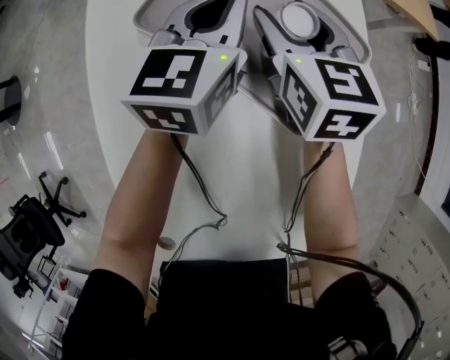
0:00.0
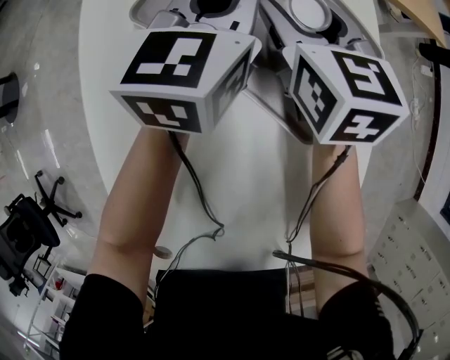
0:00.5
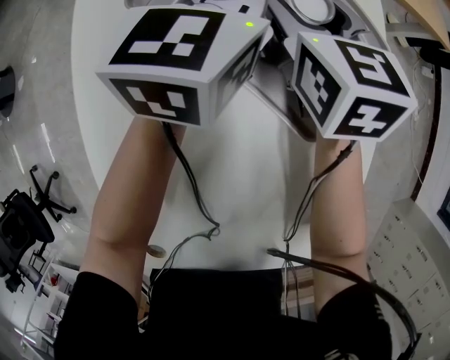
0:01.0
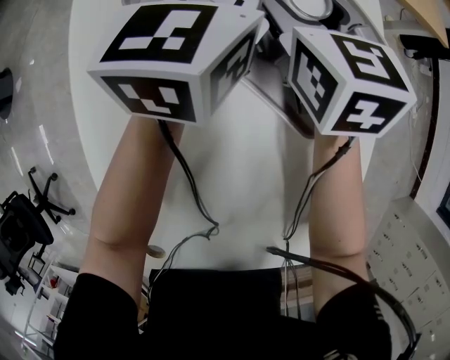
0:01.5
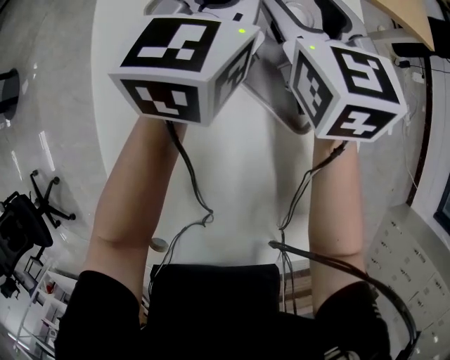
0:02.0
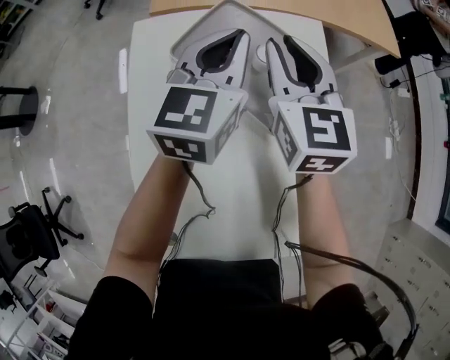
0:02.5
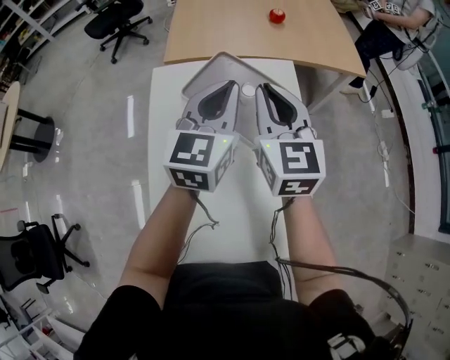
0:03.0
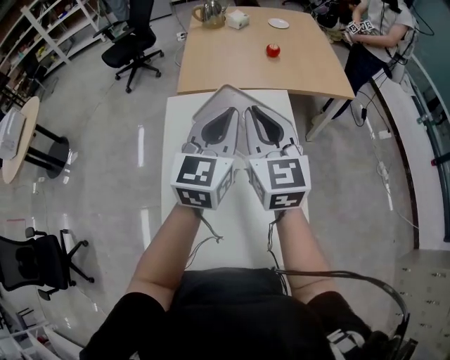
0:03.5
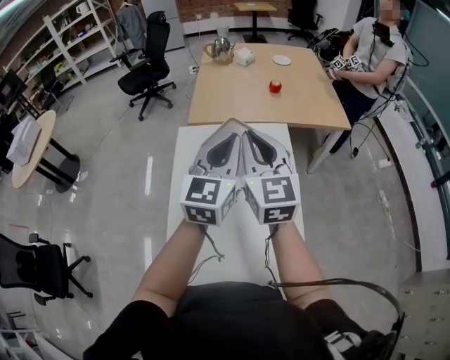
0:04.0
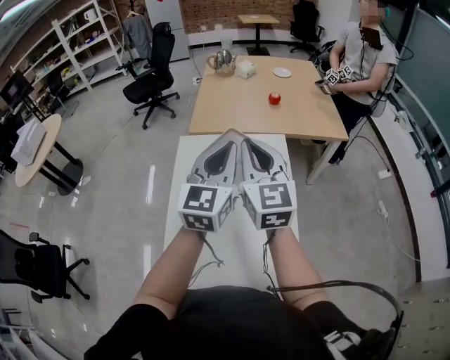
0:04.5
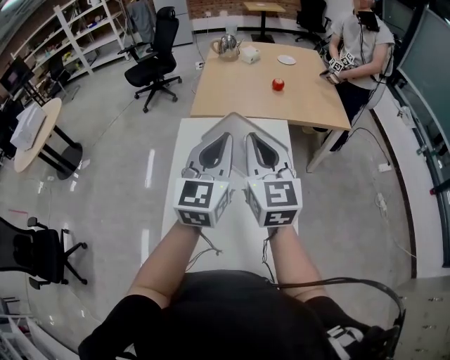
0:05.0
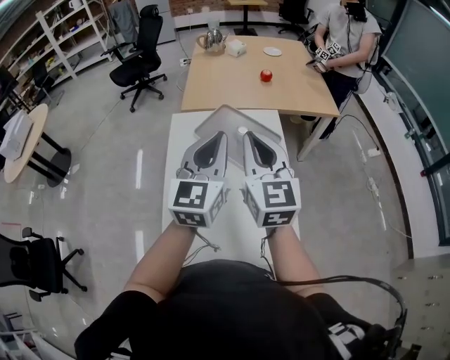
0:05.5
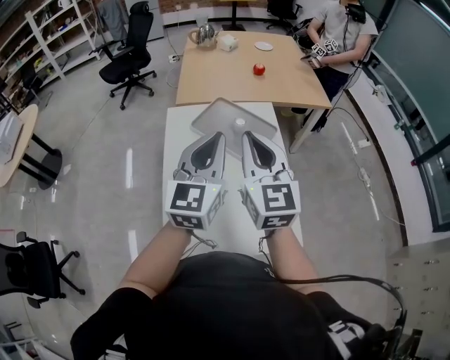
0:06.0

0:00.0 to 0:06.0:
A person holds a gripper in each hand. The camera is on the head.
0:00.0 to 0:02.0: The two grippers go approximately 5 cm upward.
0:02.0 to 0:04.0: Both grippers travel together upward and backward, approximately 50 cm. The right gripper rotates approximately 20 degrees, and closes up.
0:04.0 to 0:06.0: Both grippers move backward, roughly 10 cm.

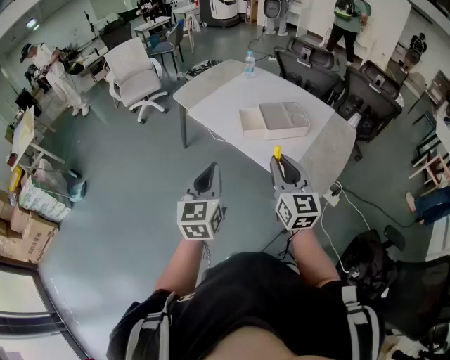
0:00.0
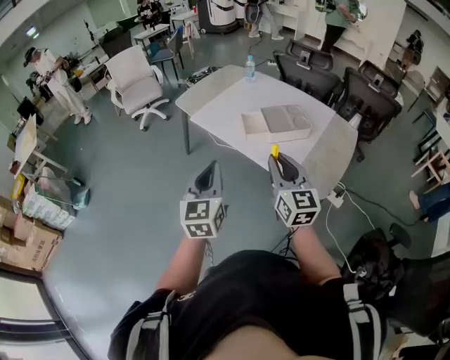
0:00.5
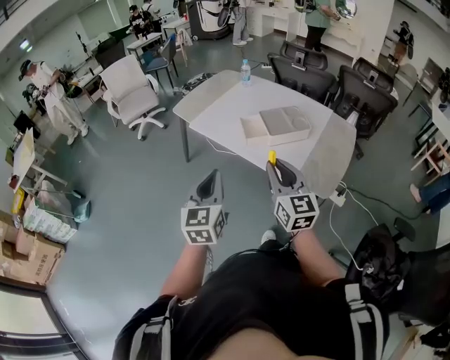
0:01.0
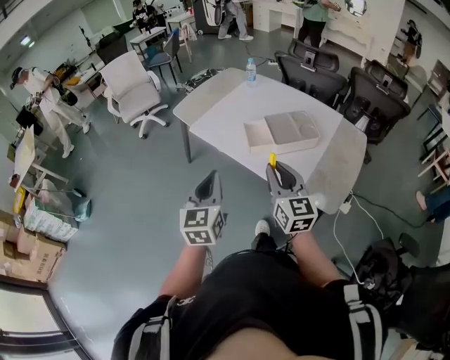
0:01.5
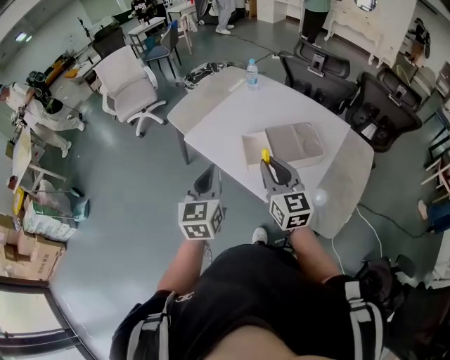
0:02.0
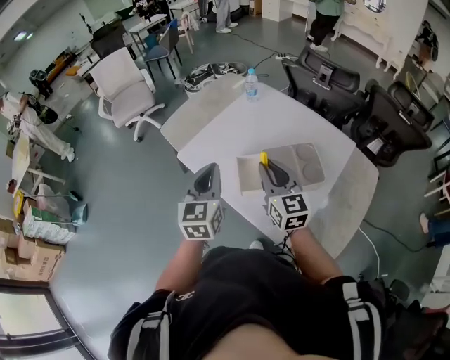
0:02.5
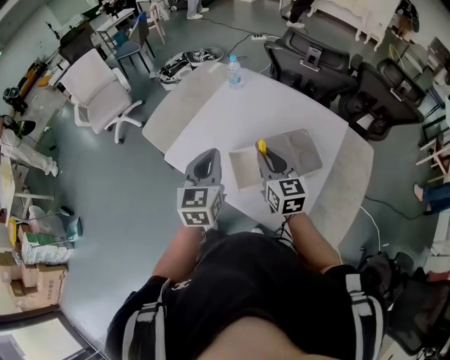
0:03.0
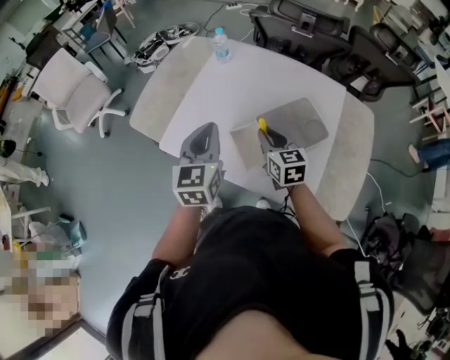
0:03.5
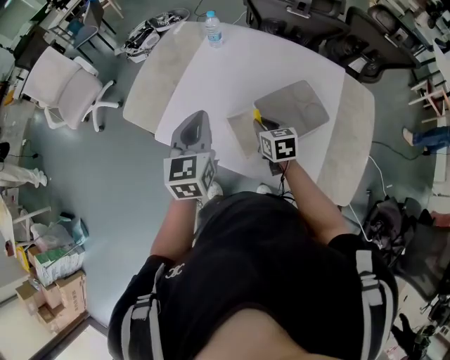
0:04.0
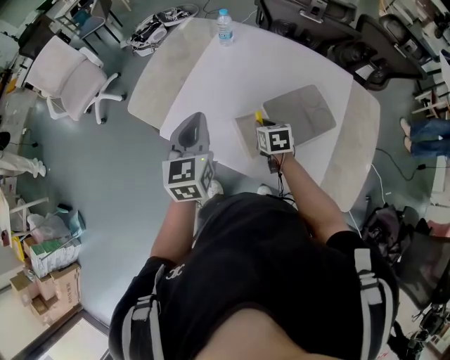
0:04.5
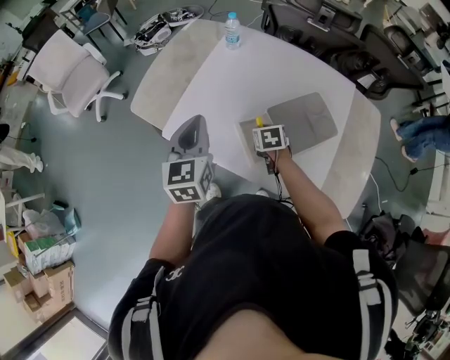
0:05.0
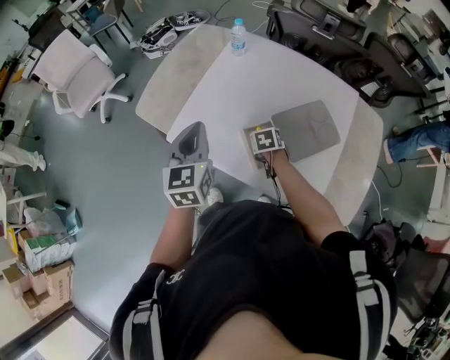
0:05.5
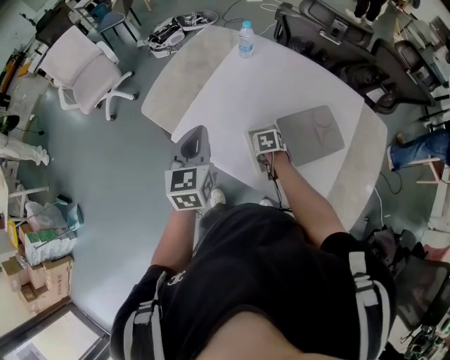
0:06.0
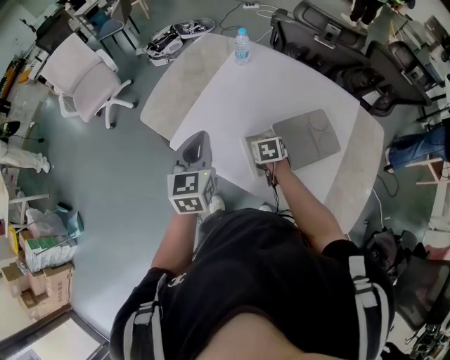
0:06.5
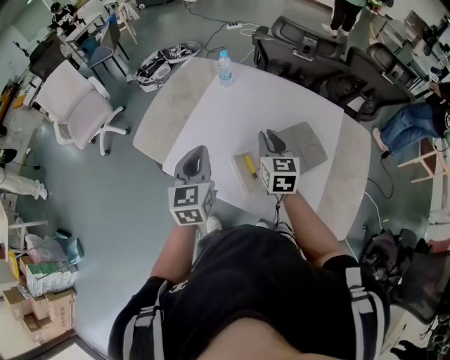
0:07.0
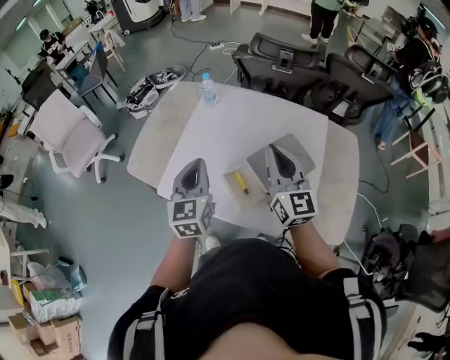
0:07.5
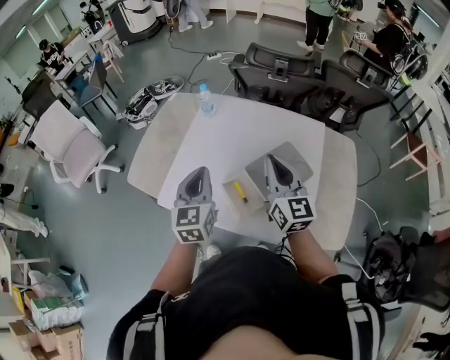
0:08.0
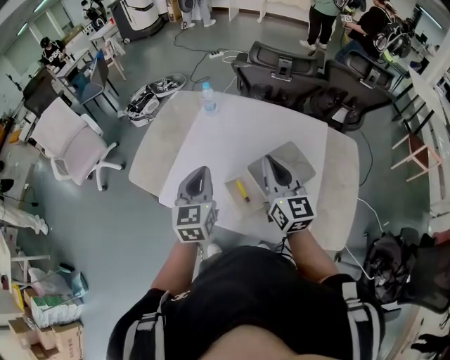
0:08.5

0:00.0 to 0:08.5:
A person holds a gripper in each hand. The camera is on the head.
0:00.0 to 0:02.0: The two grippers go roughly 25 cm forward.
0:02.0 to 0:04.0: The right gripper heads forward and downward, covering some 30 cm, and angles its fingers downward, by roughly 30 degrees; the left gripper is displaced forward by some 25 cm.
0:04.0 to 0:06.5: The right gripper heads downward and to the left, covering approximately 10 cm, and changes its angle by some 20 degrees. Meanwhile the left gripper heads to the left, covering approximately 5 cm.
0:06.5 to 0:08.5: The left gripper travels to the right by approximately 5 cm. Meanwhile the right gripper goes approximately 30 cm upward, points its fingers roughly 60 degrees further upward, and closes.

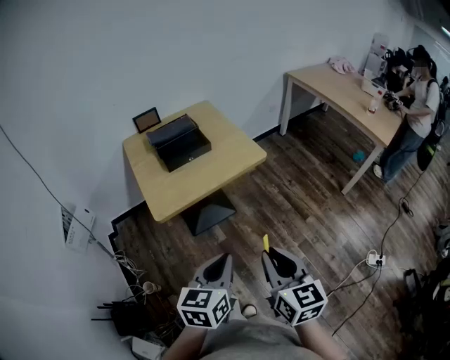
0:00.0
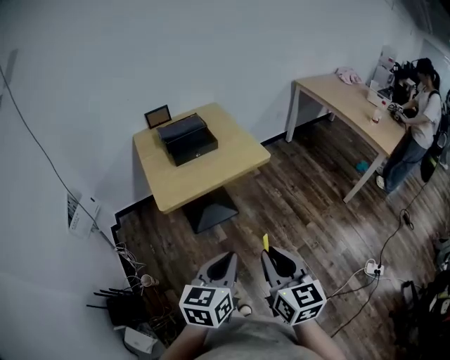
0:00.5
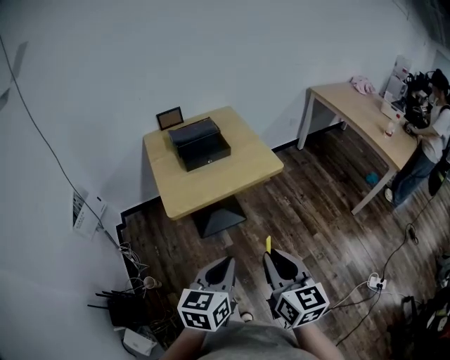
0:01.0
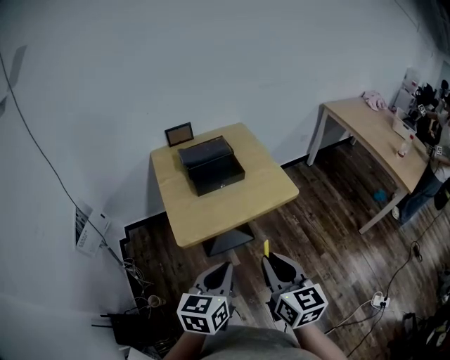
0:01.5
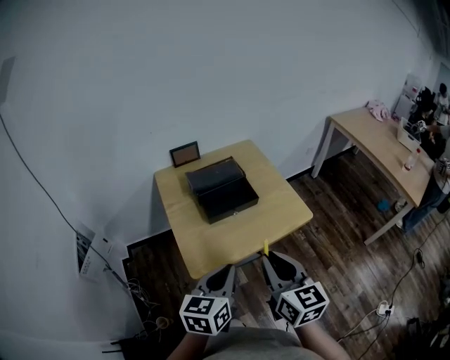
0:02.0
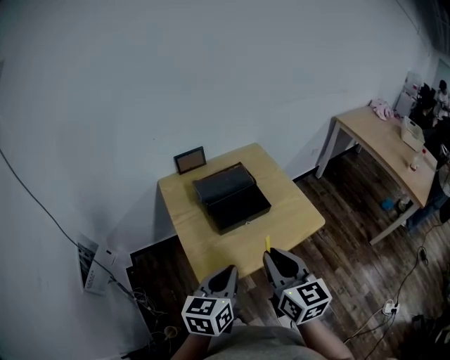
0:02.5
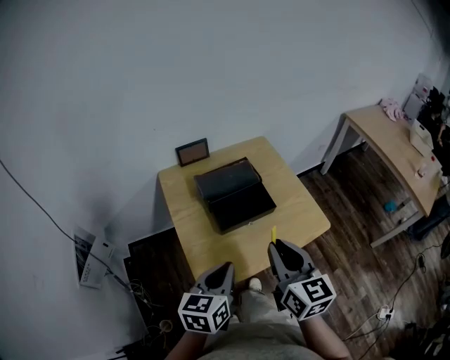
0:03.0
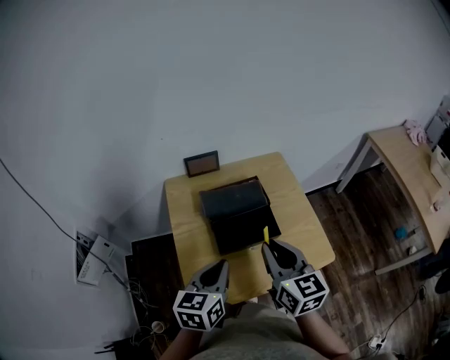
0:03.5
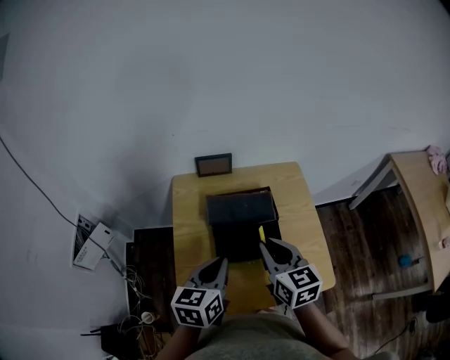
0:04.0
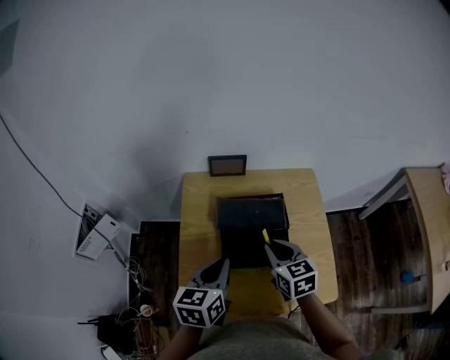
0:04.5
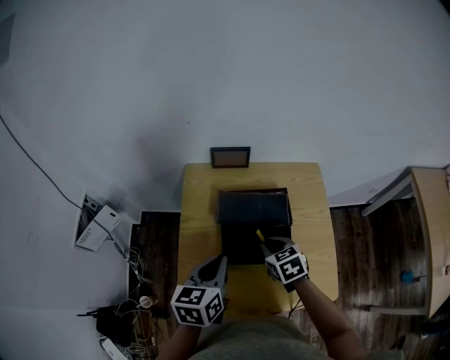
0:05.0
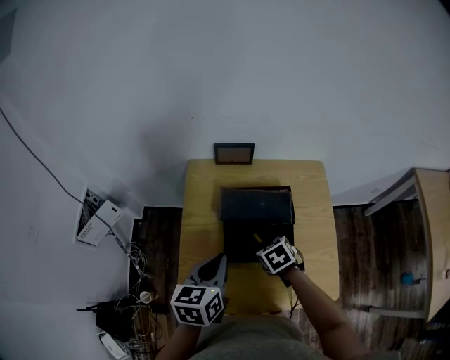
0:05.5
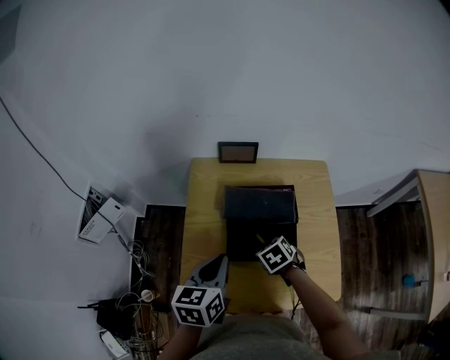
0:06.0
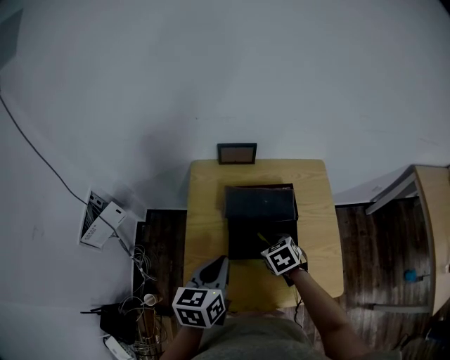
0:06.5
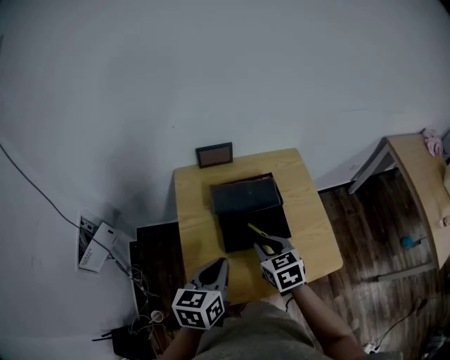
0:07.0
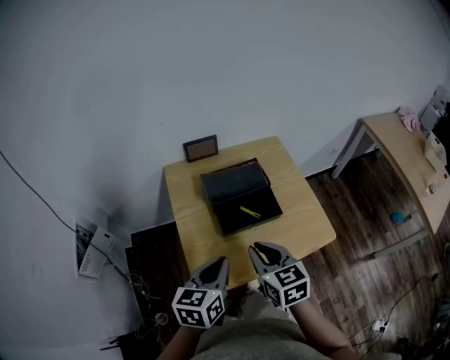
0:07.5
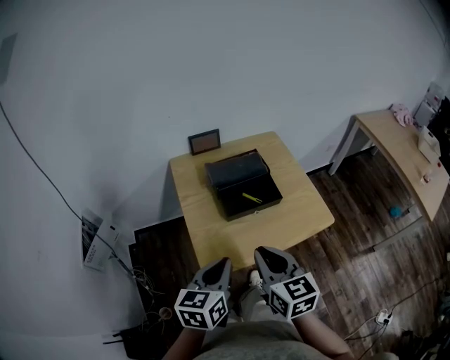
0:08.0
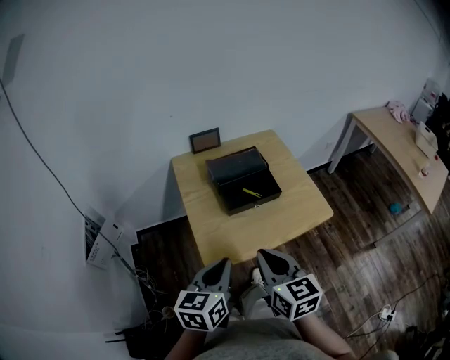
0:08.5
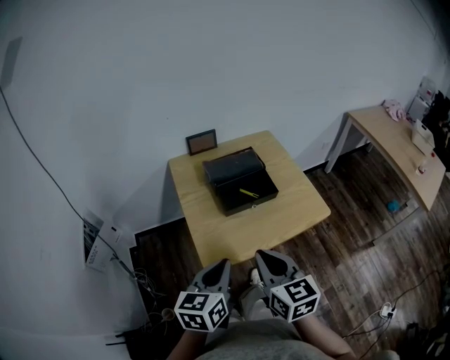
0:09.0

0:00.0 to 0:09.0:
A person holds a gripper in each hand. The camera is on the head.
0:00.0 to 0:02.0: Both grippers move forward and to the left, about 25 cm.
0:02.0 to 0:04.5: The left gripper ends up approximately 30 cm from where it was, and turns by about 30 degrees; the right gripper shifts by about 35 cm, and swivels approximately 40 degrees.
0:04.5 to 0:07.0: The two grippers go about 5 cm backward. The right gripper goes downward and returns, some 15 cm each way.
0:07.0 to 0:09.0: The right gripper shifts roughly 25 cm backward and upward, and swivels roughly 30 degrees, while the left gripper heads backward, covering about 20 cm.

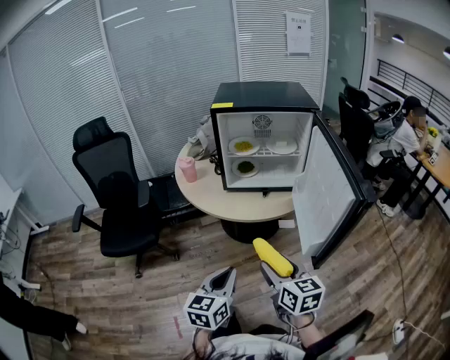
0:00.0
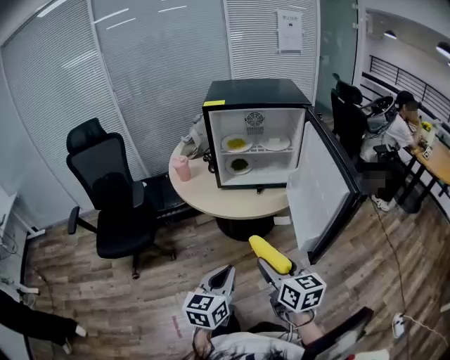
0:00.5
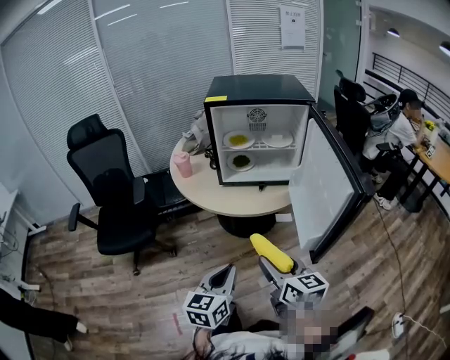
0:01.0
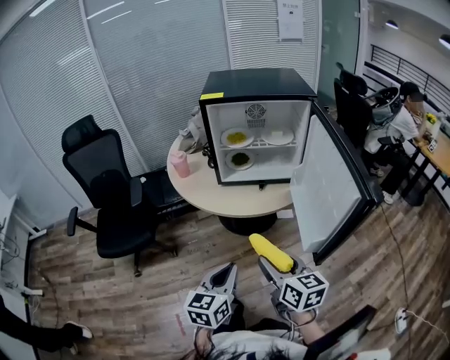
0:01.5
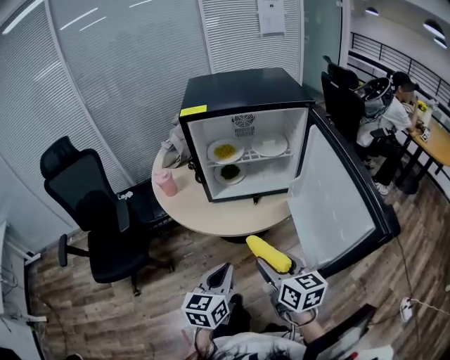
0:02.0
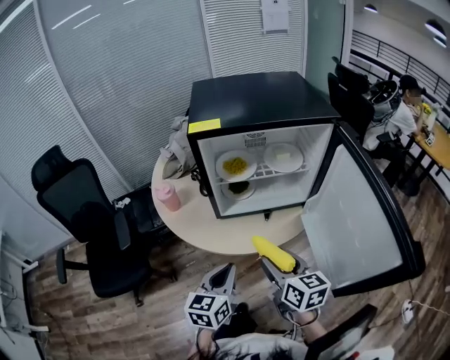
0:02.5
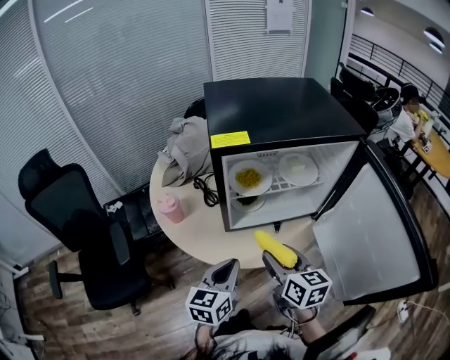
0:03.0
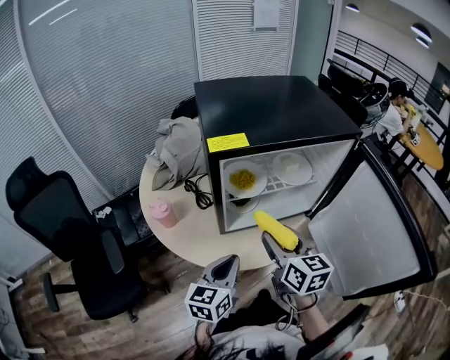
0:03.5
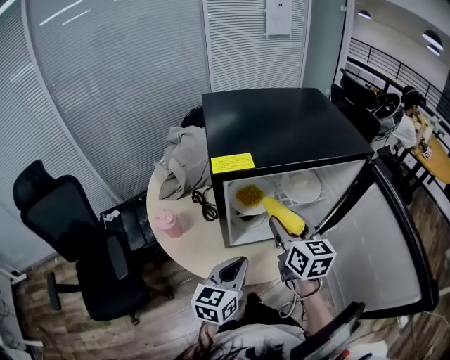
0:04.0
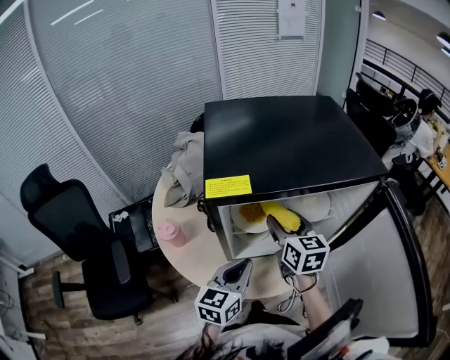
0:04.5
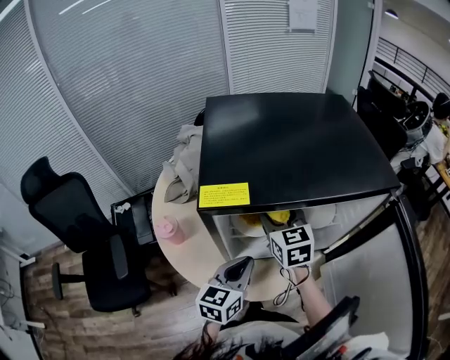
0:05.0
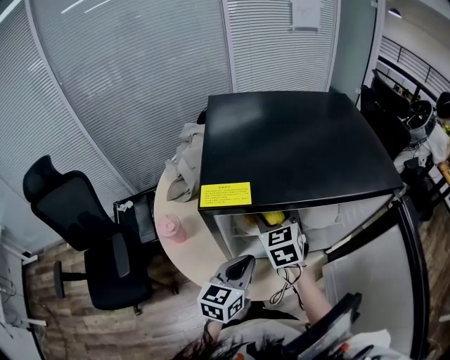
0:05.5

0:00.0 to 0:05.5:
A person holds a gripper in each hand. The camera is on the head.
0:00.0 to 0:02.0: Both grippers move forward, roughly 10 cm.
0:02.0 to 0:03.5: The right gripper moves forward, about 20 cm. Meanwhile the left gripper is displaced forward and to the left by about 20 cm.
0:03.5 to 0:05.5: The left gripper goes about 10 cm forward; the right gripper goes approximately 20 cm forward, and changes its angle by roughly 40 degrees.
